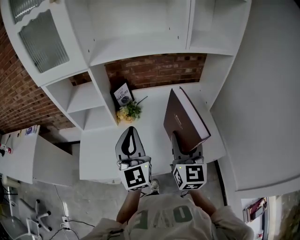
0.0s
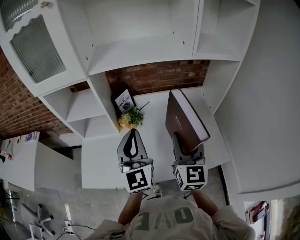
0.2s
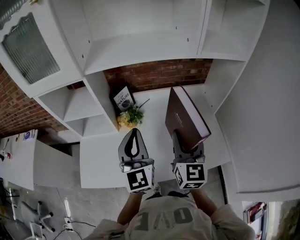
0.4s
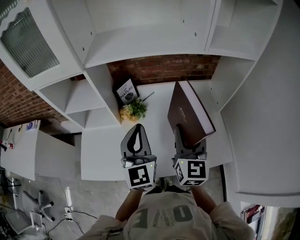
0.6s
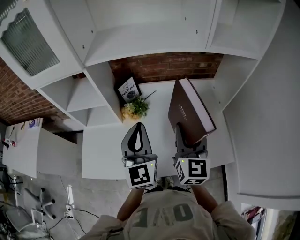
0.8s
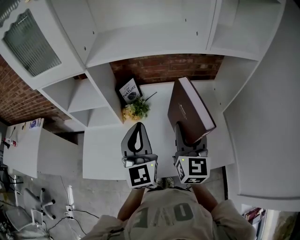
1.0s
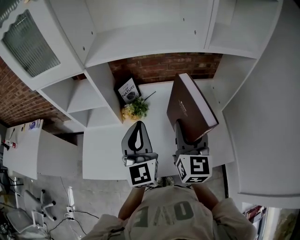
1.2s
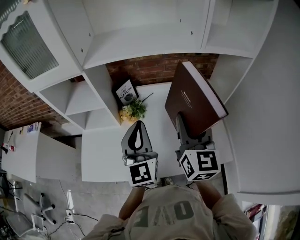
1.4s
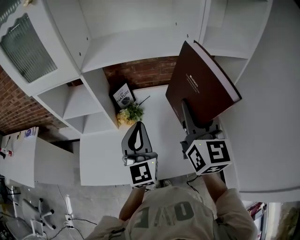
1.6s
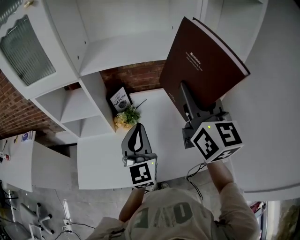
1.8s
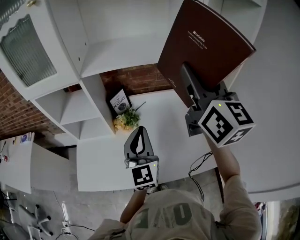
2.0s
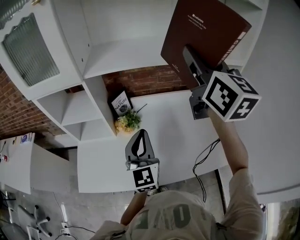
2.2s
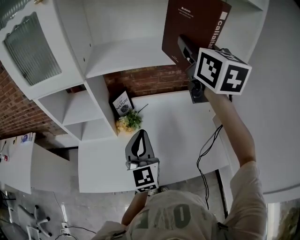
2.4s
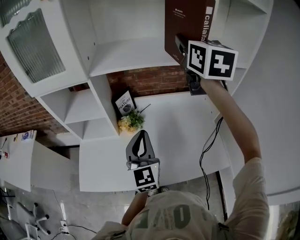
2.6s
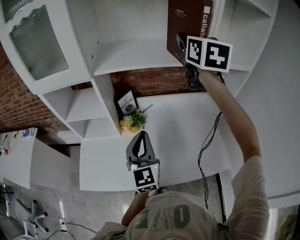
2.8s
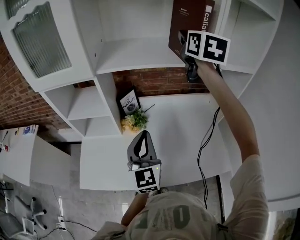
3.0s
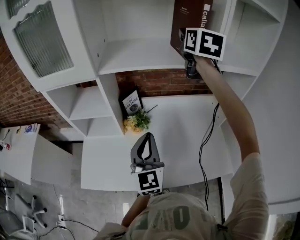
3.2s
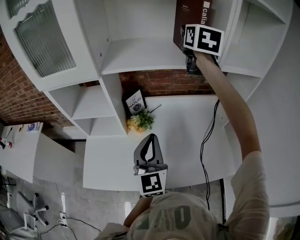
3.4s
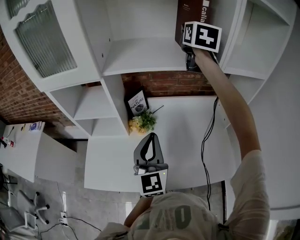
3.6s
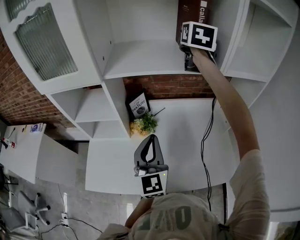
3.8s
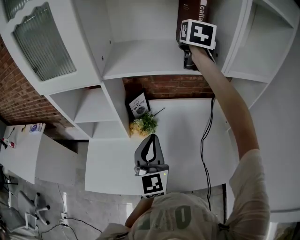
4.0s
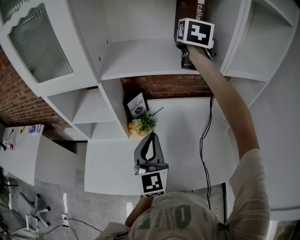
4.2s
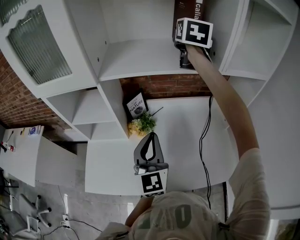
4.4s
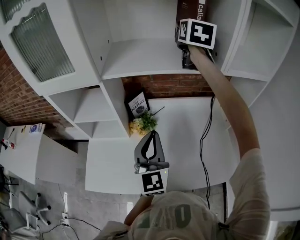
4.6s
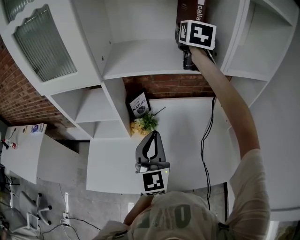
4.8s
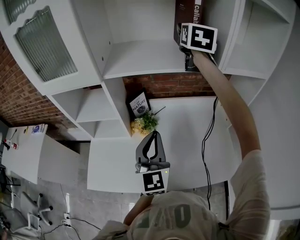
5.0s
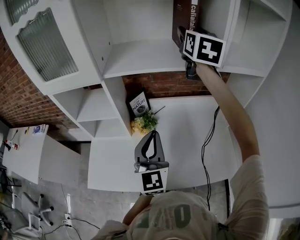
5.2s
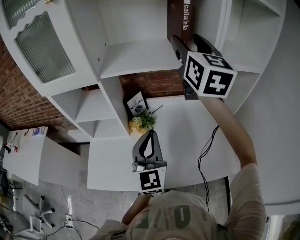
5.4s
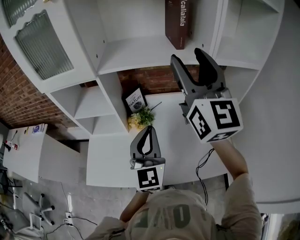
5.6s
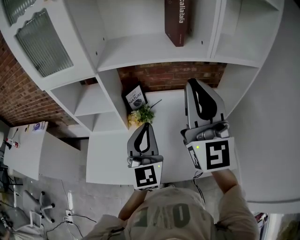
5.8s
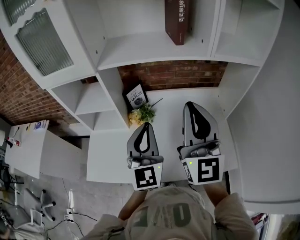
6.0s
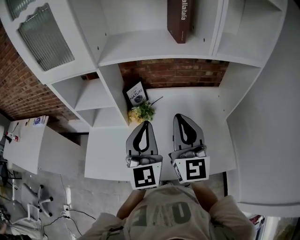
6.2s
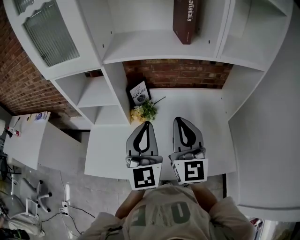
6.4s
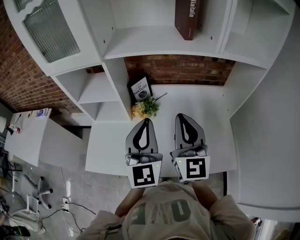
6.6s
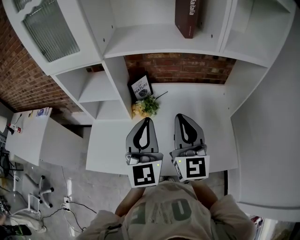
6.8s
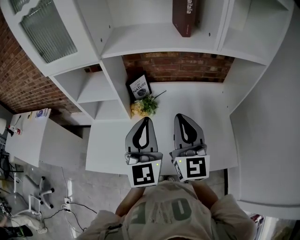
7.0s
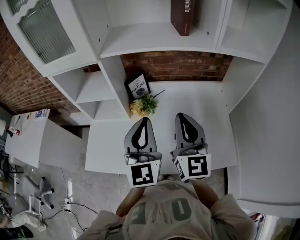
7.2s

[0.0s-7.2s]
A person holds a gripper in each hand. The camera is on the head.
0.0s to 1.4s: The left gripper shifts approximately 10 cm forward; the right gripper is displaced forward and upward by approximately 10 cm.
1.4s to 2.8s: The right gripper travels forward and upward by roughly 30 cm.
2.8s to 4.4s: The right gripper travels forward by approximately 15 cm.
4.4s to 5.8s: The right gripper goes roughly 35 cm backward, points its fingers about 30 degrees further upward, and closes its fingers, while the left gripper shifts by about 5 cm.
5.8s to 7.2s: The right gripper goes roughly 15 cm downward, and rotates about 20 degrees.

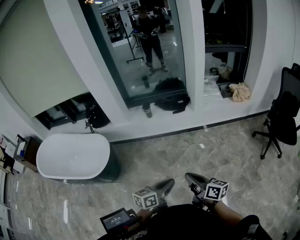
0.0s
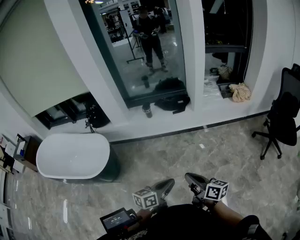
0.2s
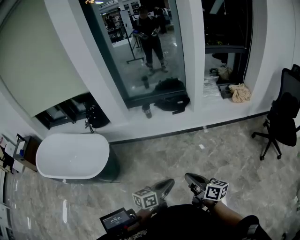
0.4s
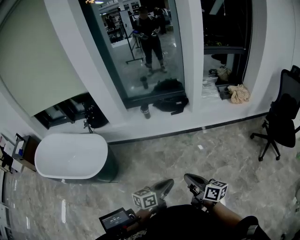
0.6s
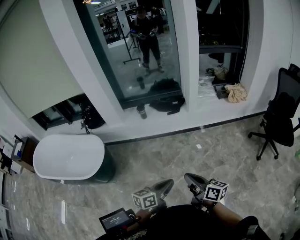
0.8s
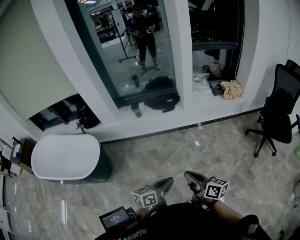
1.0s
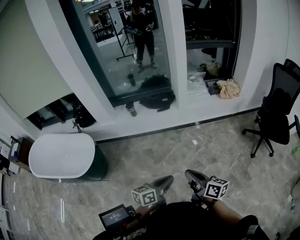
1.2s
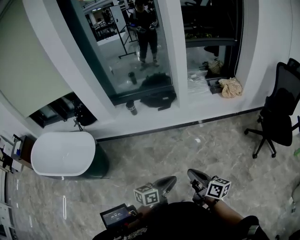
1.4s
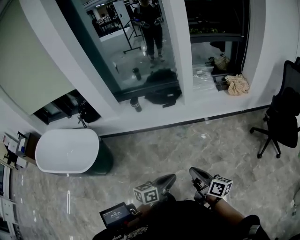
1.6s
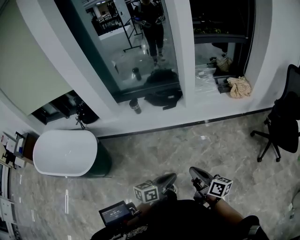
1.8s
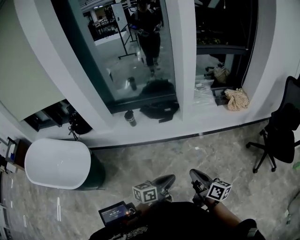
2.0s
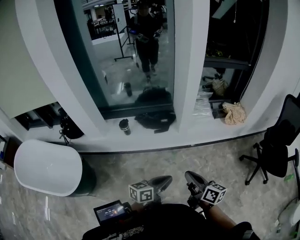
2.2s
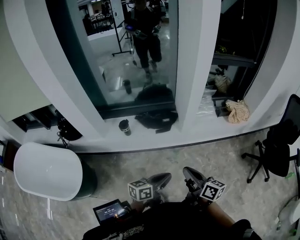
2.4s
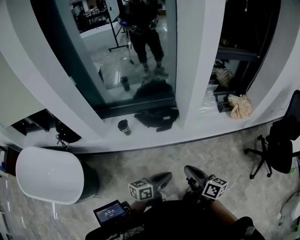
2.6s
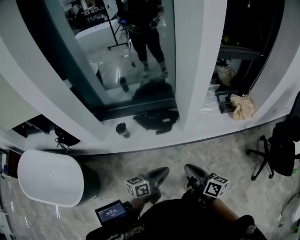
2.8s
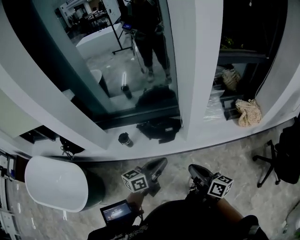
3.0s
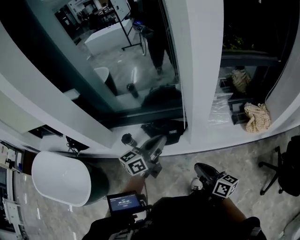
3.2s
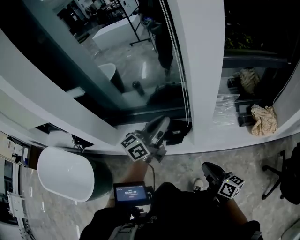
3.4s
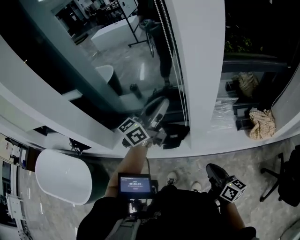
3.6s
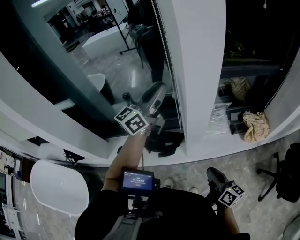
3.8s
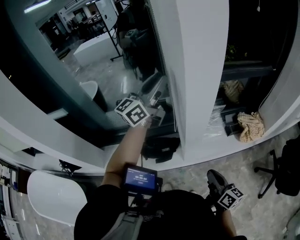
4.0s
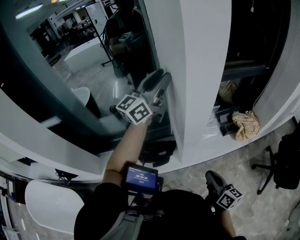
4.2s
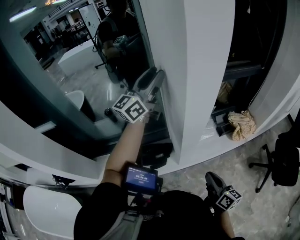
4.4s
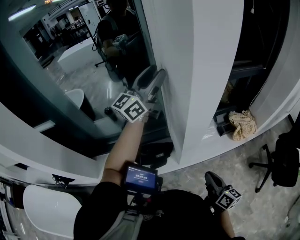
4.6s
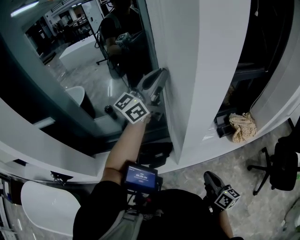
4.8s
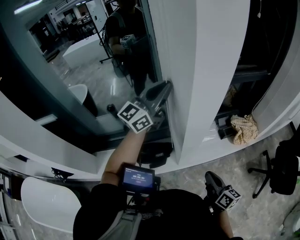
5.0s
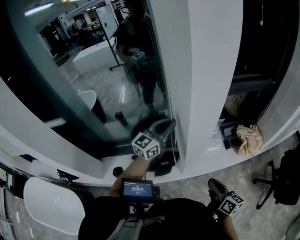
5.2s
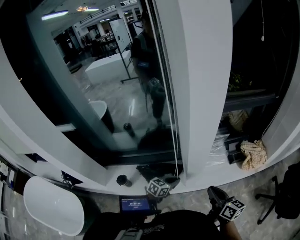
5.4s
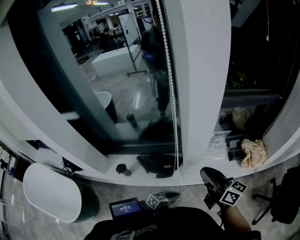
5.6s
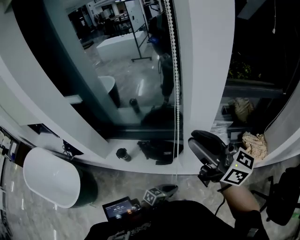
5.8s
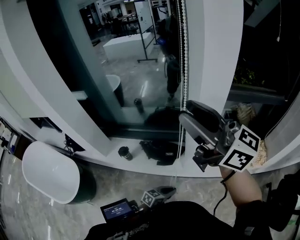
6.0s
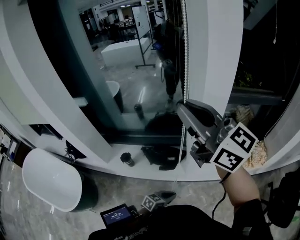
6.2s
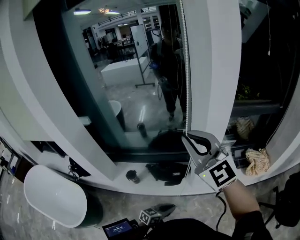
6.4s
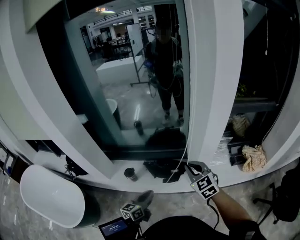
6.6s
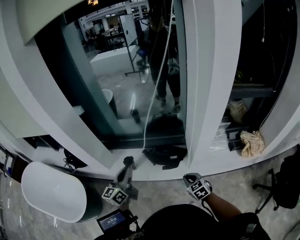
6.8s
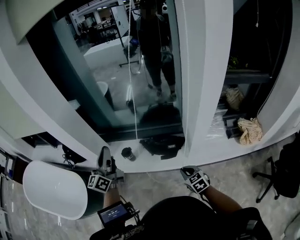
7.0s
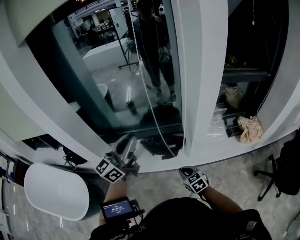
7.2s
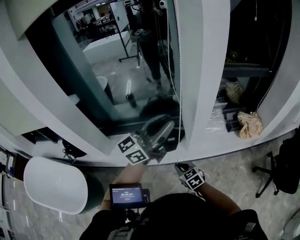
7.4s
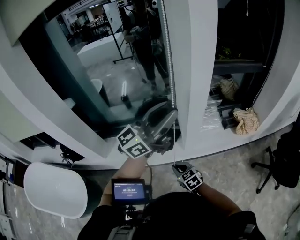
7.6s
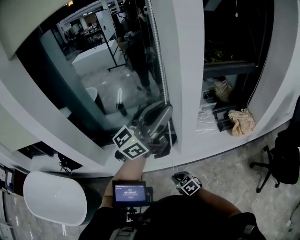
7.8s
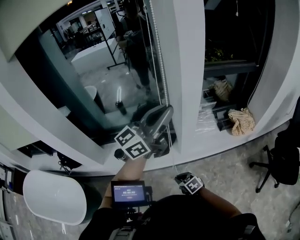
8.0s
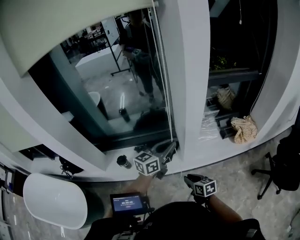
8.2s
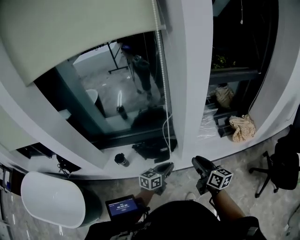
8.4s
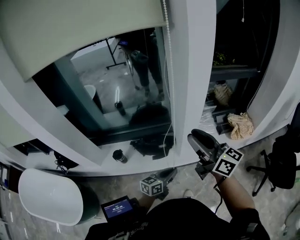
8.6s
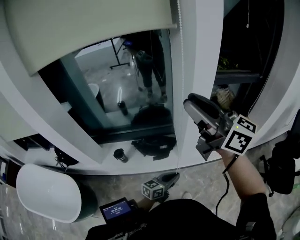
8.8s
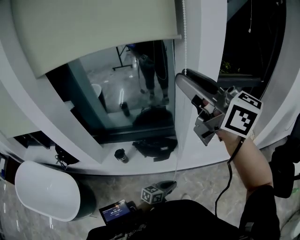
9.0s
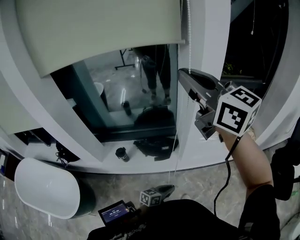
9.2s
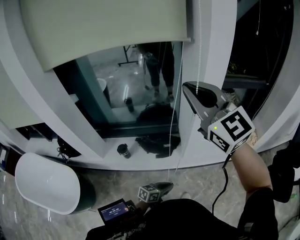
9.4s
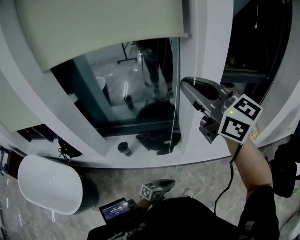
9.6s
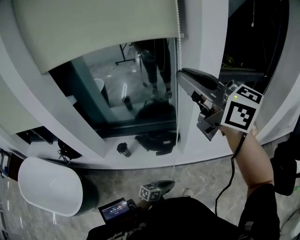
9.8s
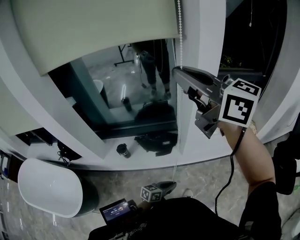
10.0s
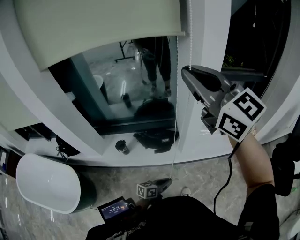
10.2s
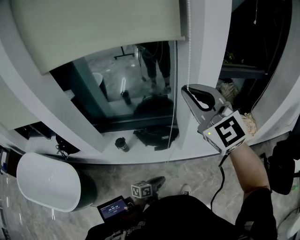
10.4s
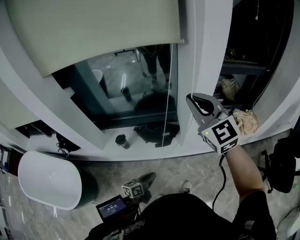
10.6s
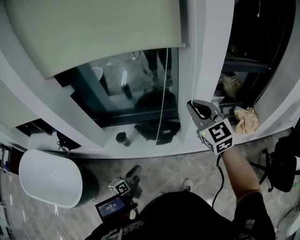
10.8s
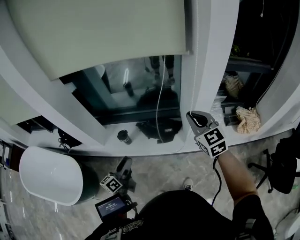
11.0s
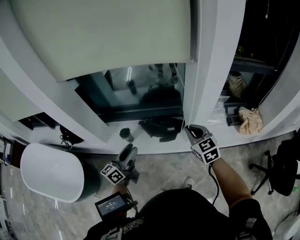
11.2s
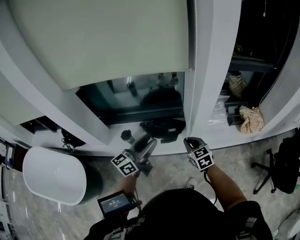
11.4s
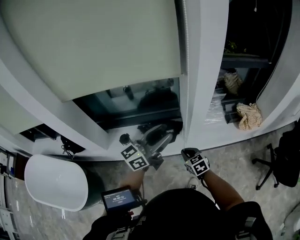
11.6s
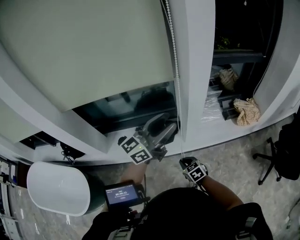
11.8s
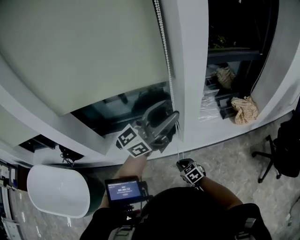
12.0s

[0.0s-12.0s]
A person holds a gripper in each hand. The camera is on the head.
0.0s to 1.6s: Both grippers travel together to the right, some 15 cm.
1.6s to 3.0s: The pair of grippers is taken forward, roughly 50 cm.
3.0s to 4.4s: The left gripper shifts roughly 50 cm forward and upward, changes its angle by roughly 40 degrees, and opens. The right gripper goes roughly 20 cm forward and to the right, and turns by approximately 20 degrees.
4.4s to 6.0s: The right gripper shifts about 40 cm upward, changes its angle by about 60 degrees, and opens; the left gripper goes approximately 50 cm downward, tilts its fingers approximately 60 degrees downward, and closes its fingers.
6.0s to 7.6s: The right gripper goes approximately 50 cm downward, tips its fingers downward by roughly 60 degrees, and closes, while the left gripper is displaced upward by approximately 50 cm, points its fingers approximately 60 degrees further upward, and opens its fingers.
7.6s to 9.0s: The left gripper moves downward, roughly 40 cm, angles its fingers downward, by approximately 50 degrees, and closes up, while the right gripper shifts roughly 60 cm upward, tilts its fingers about 50 degrees upward, and opens up.
9.0s to 10.4s: The left gripper shifts approximately 10 cm to the left, and swivels about 20 degrees, while the right gripper moves up and down over some 10 cm, changing direction 2 times, rotates around the line of its fingers by roughly 40 degrees, counterclockwise from behind, and closes.
10.4s to 12.0s: The left gripper goes some 40 cm upward, points its fingers some 50 degrees further upward, and opens its fingers. Meanwhile the right gripper shifts approximately 50 cm downward, and angles its fingers downward, by some 50 degrees.

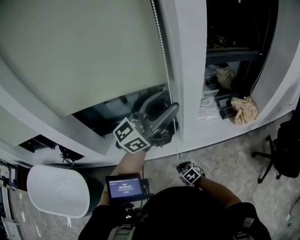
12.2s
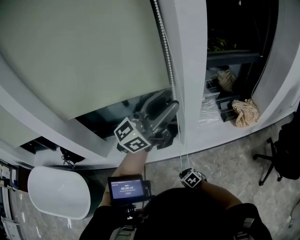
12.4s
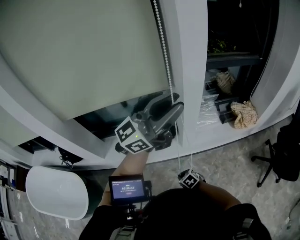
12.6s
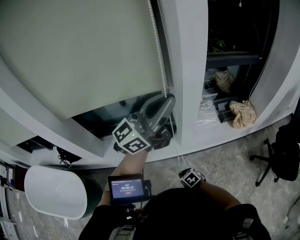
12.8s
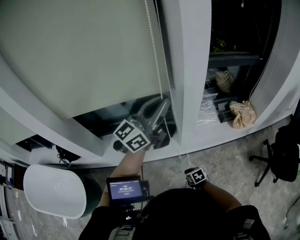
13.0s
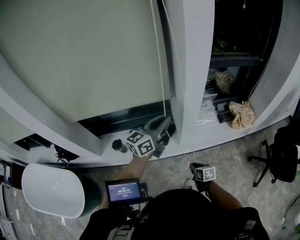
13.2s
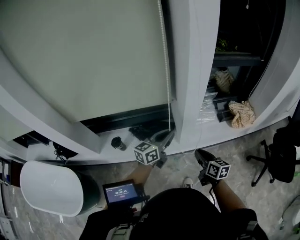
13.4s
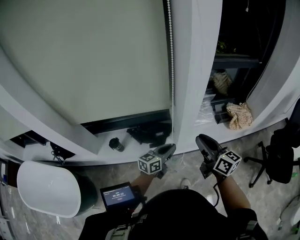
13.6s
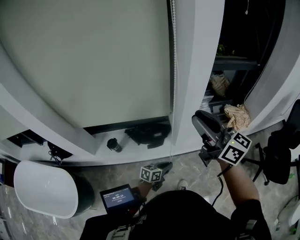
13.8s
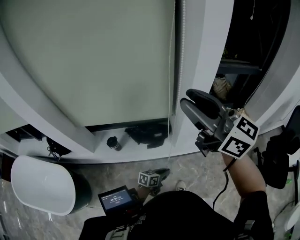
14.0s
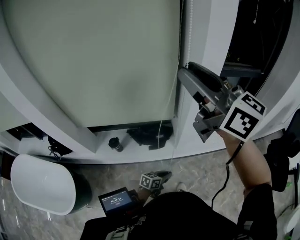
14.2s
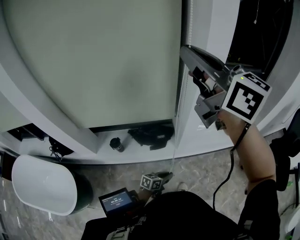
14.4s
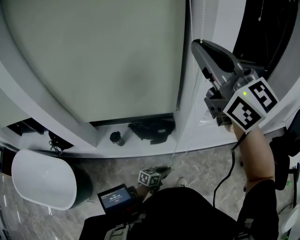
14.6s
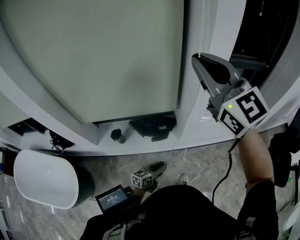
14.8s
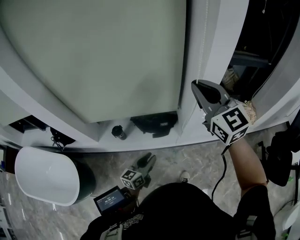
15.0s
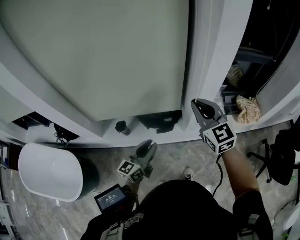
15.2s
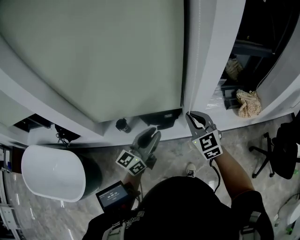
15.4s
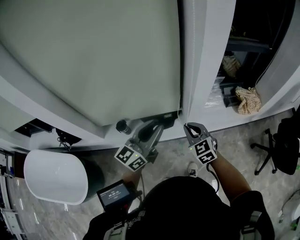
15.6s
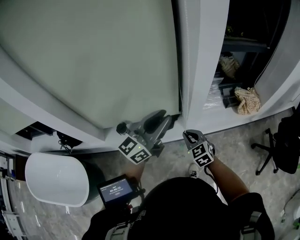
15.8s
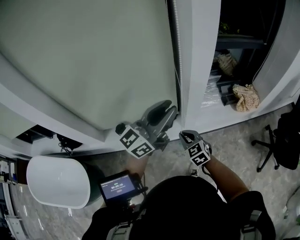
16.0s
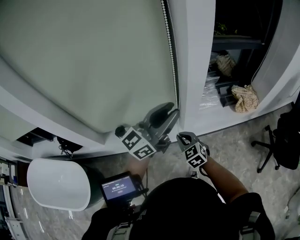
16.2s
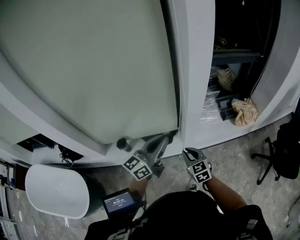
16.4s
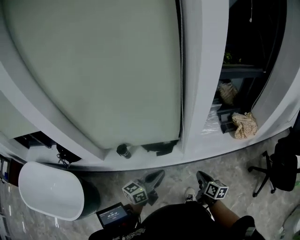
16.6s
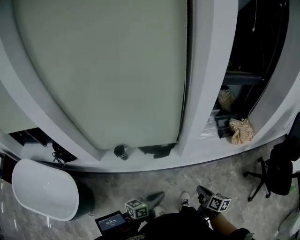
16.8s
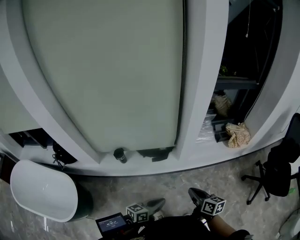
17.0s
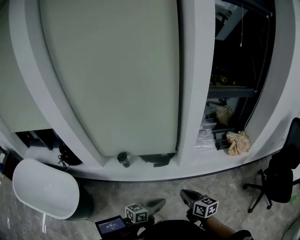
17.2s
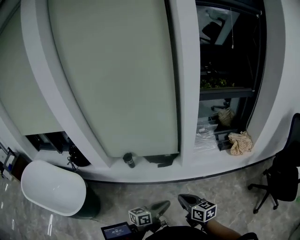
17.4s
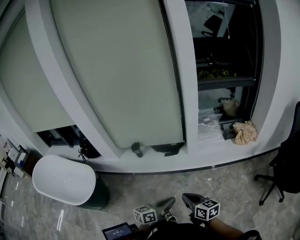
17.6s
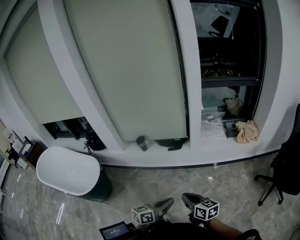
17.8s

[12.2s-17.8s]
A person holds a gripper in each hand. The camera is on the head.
12.2s to 13.6s: The left gripper shifts some 35 cm downward, tips its fingers downward by roughly 40 degrees, and closes up, while the right gripper is displaced upward by approximately 30 cm, and points its fingers some 50 degrees further upward.
13.6s to 15.0s: The left gripper travels to the left and backward by about 15 cm, goes downward and returns, about 15 cm each way, and opens. Meanwhile the right gripper heads upward and to the left, covering roughly 20 cm, and rotates around the line of its fingers by approximately 40 degrees, counterclockwise from behind.
15.0s to 16.4s: The right gripper heads downward, covering roughly 35 cm, and rotates roughly 30 degrees; the left gripper heads upward and to the right, covering some 20 cm, rotates approximately 20 degrees, and closes up.
16.4s to 17.8s: The two grippers go roughly 40 cm backward. The left gripper turns by approximately 30 degrees; the right gripper swivels about 40 degrees.
